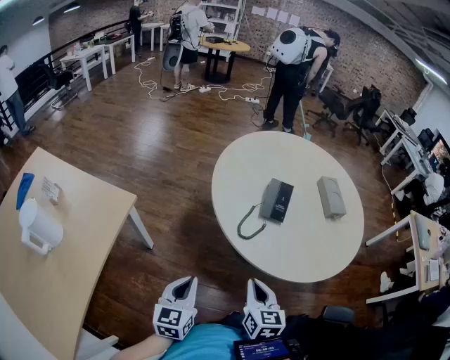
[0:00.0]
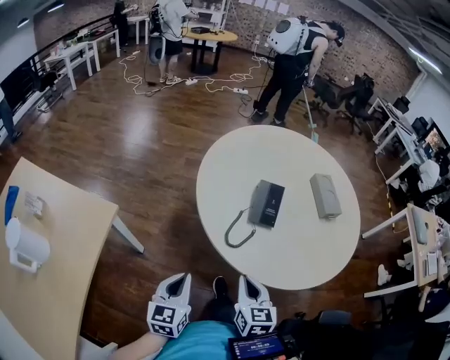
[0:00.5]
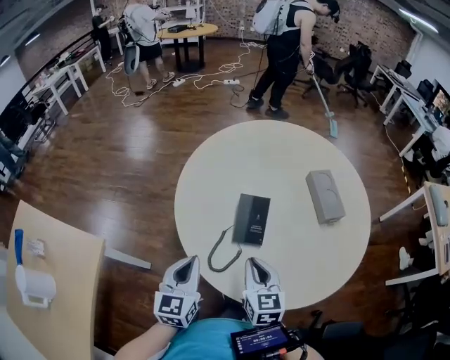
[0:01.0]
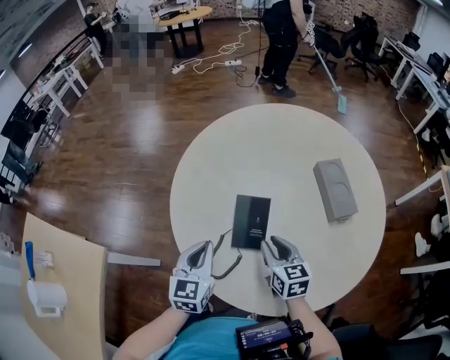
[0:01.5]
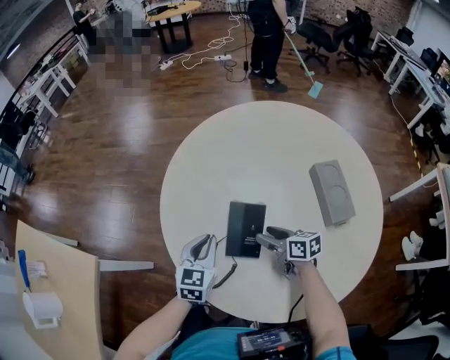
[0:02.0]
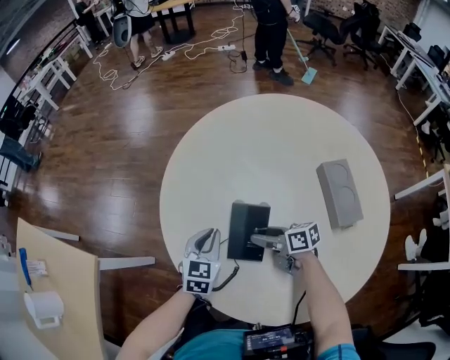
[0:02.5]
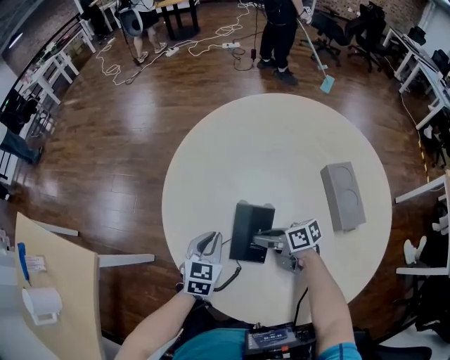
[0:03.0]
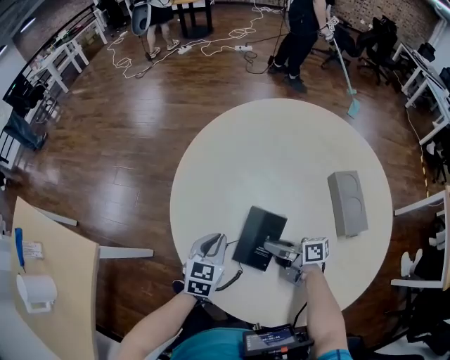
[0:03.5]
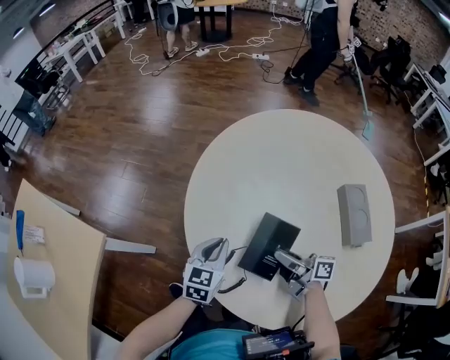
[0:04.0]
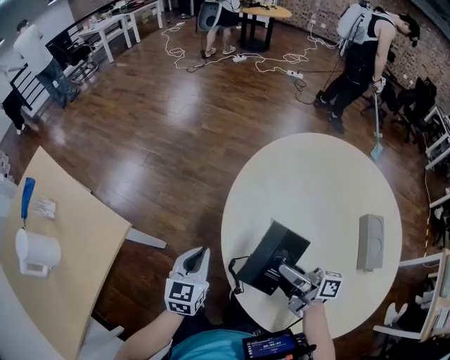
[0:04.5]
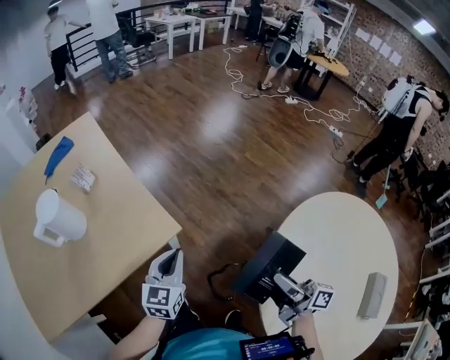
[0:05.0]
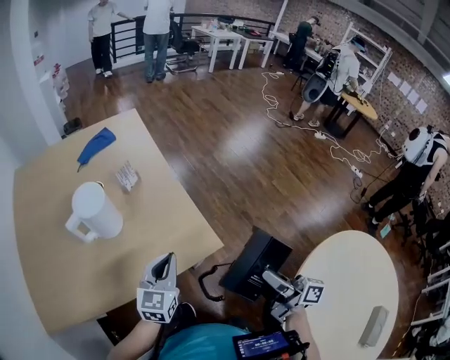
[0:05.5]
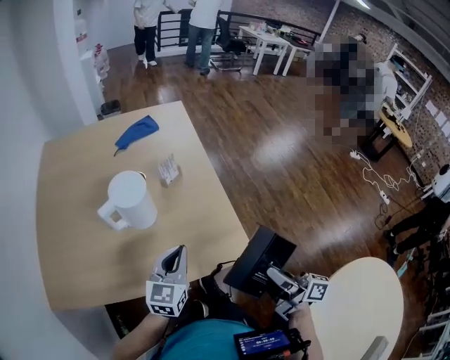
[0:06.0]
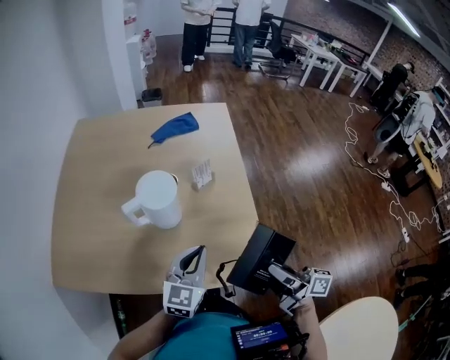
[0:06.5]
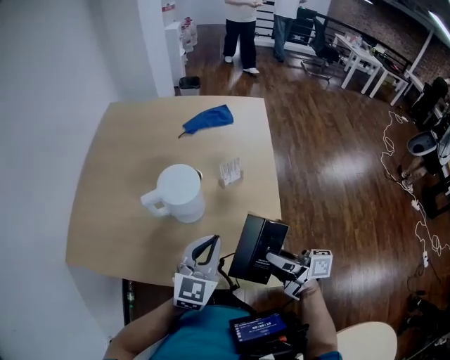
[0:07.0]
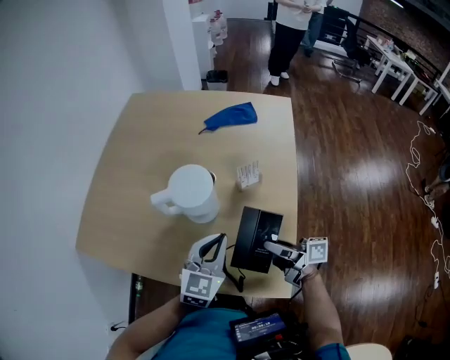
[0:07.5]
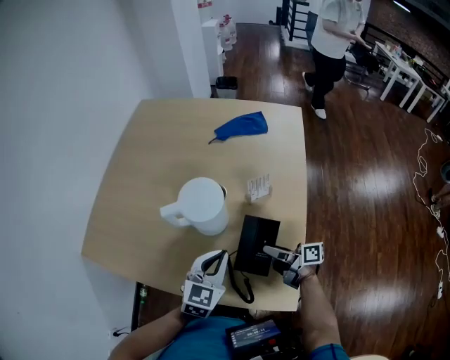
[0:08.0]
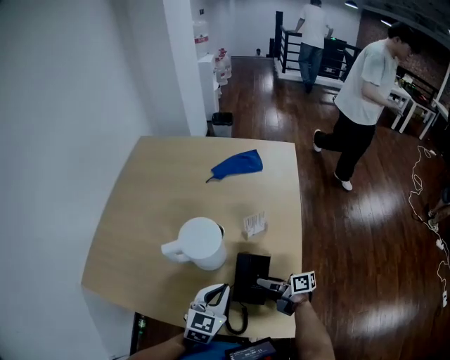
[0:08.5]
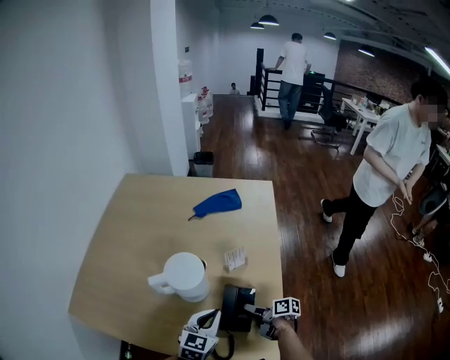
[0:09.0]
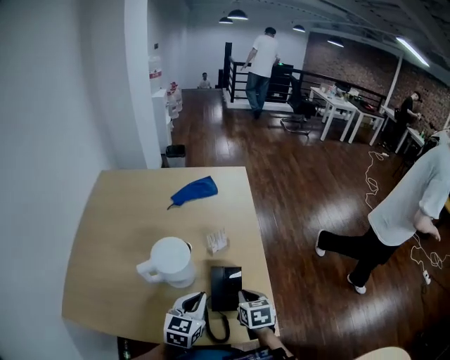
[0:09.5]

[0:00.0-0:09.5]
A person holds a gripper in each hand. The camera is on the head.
0:00.0 to 0:02.0: Both grippers are carried forward and to the right, some 40 cm. The right gripper rotates some 40 degrees, and opens its fingers.
0:02.0 to 0:04.0: The right gripper shifts by roughly 5 cm, changes its angle by some 30 degrees, and closes its fingers.
0:04.0 to 0:05.5: The pair of grippers is taken some 60 cm. The right gripper rotates roughly 40 degrees, while the left gripper swivels about 60 degrees.
0:05.5 to 0:07.5: The right gripper moves approximately 40 cm, and changes its angle by about 60 degrees; the left gripper changes place by approximately 15 cm, and rotates roughly 30 degrees.
0:07.5 to 0:09.5: The right gripper moves some 10 cm downward and comes back, angles its fingers downward, by about 50 degrees, and closes its fingers.

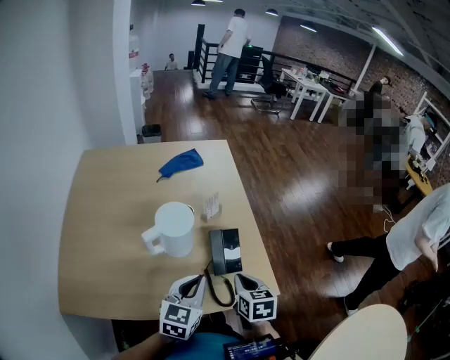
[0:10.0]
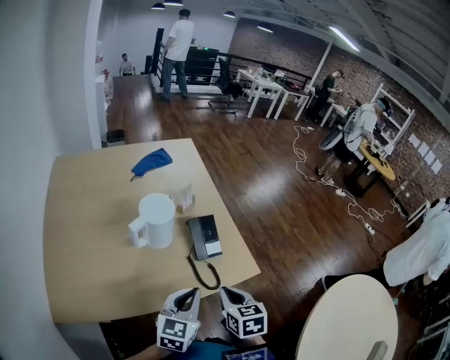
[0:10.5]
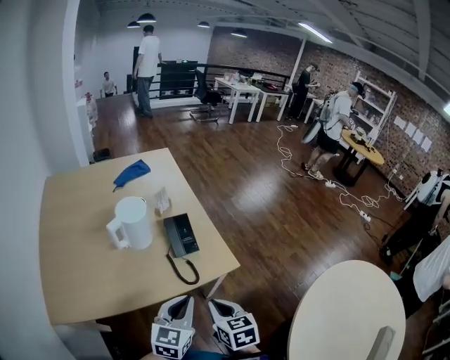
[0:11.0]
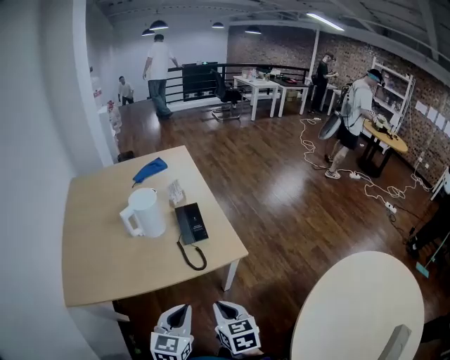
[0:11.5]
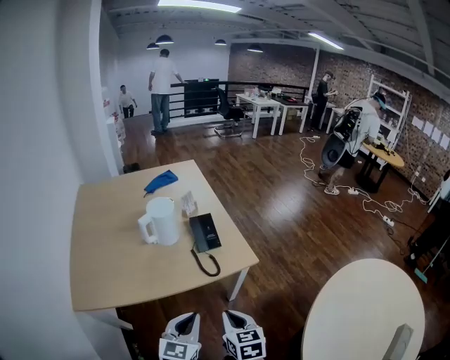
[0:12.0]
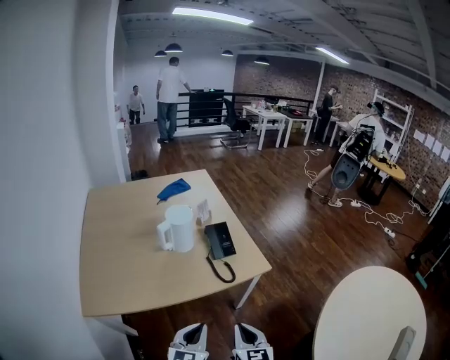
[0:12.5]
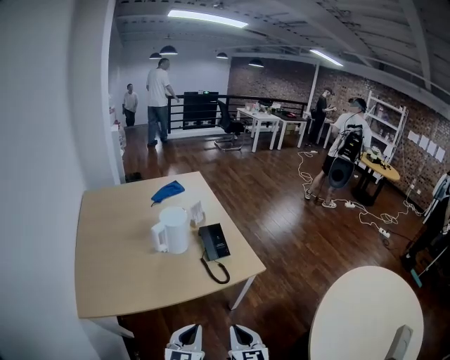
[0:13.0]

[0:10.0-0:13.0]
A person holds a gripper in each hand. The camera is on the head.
0:10.0 to 0:11.5: Both grippers move backward, some 25 cm.
0:11.5 to 0:13.0: The left gripper shifts about 10 cm to the left, while the right gripper goes approximately 10 cm backward and to the left.

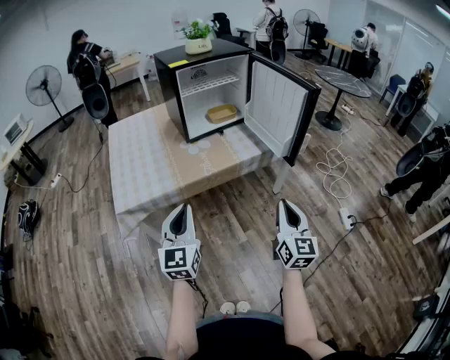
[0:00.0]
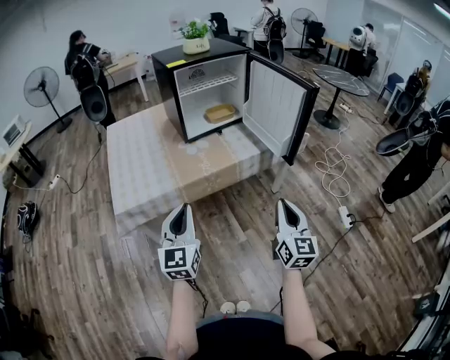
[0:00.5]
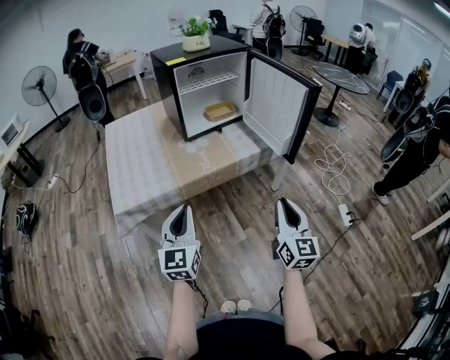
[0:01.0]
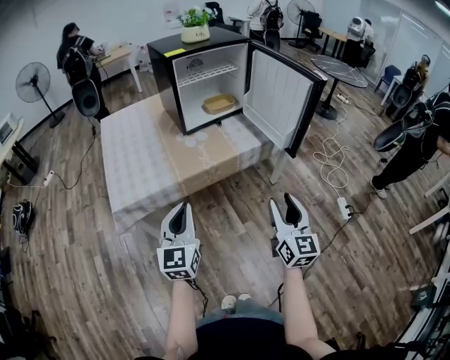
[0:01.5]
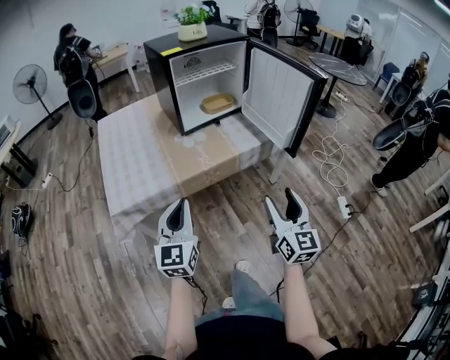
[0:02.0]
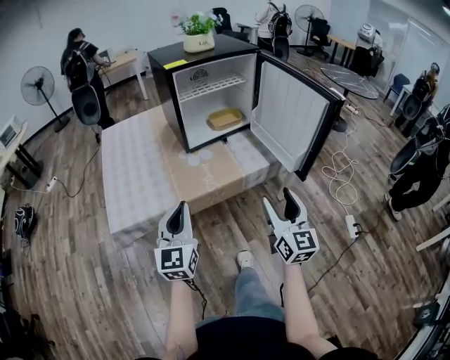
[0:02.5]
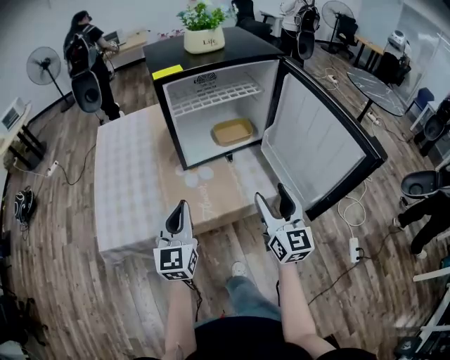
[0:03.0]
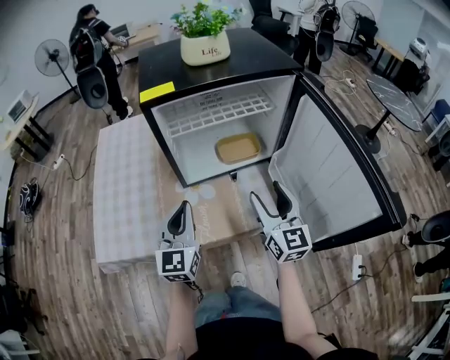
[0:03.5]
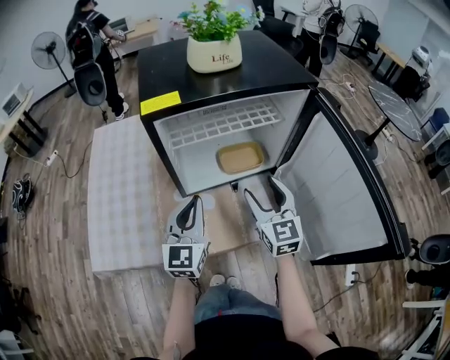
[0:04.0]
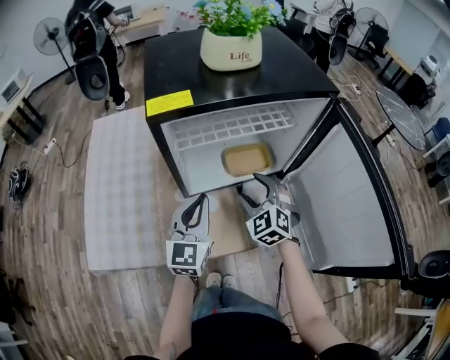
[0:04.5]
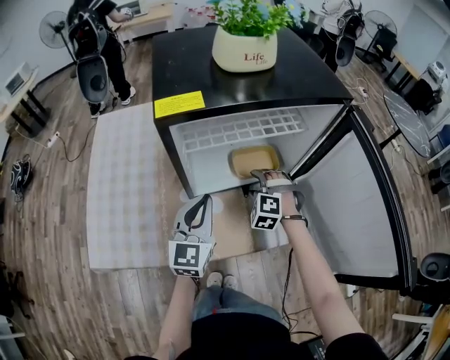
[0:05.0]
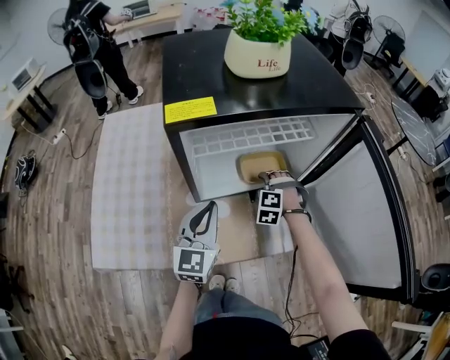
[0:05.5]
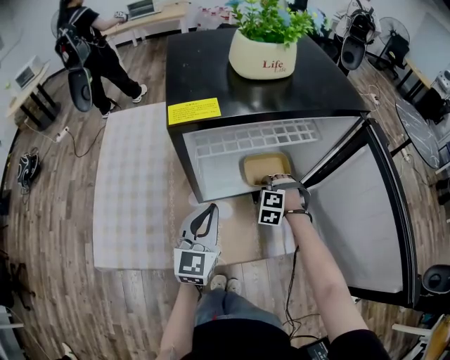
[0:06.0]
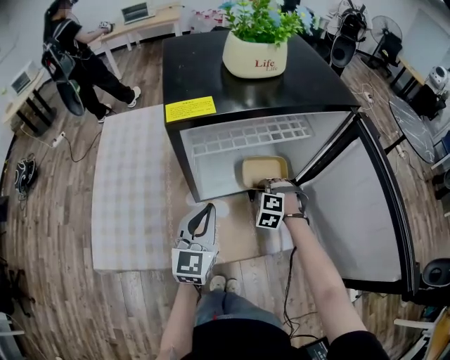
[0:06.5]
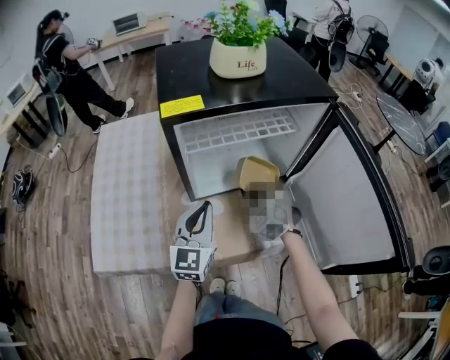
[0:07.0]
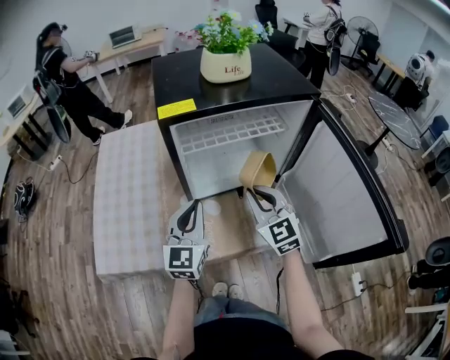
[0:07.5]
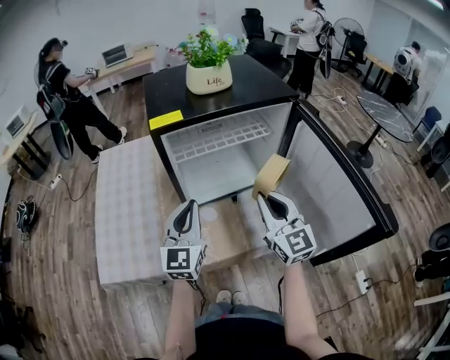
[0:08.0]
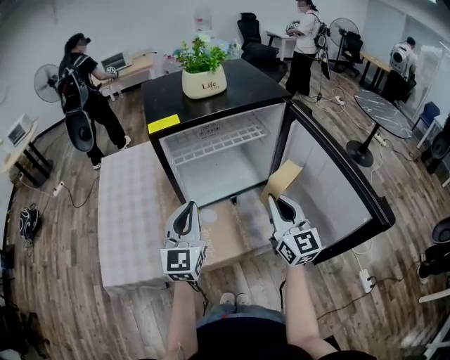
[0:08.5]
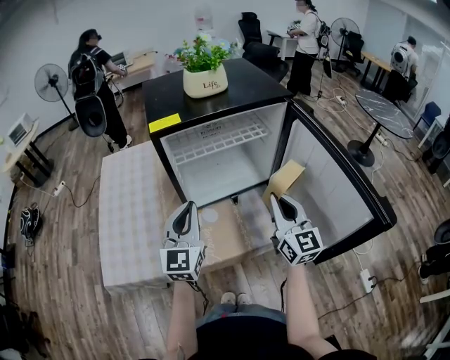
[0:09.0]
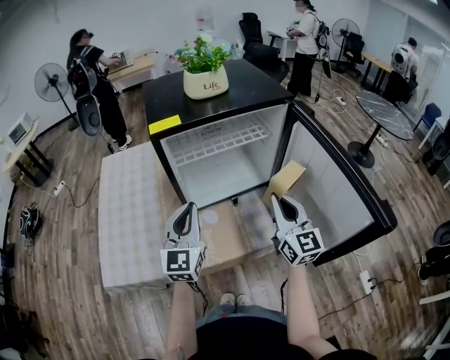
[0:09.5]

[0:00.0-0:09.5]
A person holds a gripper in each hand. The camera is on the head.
0:00.0 to 0:02.0: The right gripper opens its fingers.
0:02.0 to 0:04.0: Both grippers are carried forward, roughly 50 cm. The right gripper changes its angle by roughly 30 degrees.
0:04.0 to 0:05.5: The right gripper is displaced downward and forward by about 20 cm, and angles its fingers downward, by about 50 degrees; the left gripper ends up roughly 5 cm from where it was.
0:05.5 to 0:07.5: The left gripper shifts by about 5 cm. The right gripper is displaced upward and backward by about 25 cm, points its fingers roughly 50 degrees further upward, and closes up.
0:07.5 to 0:09.5: The right gripper is displaced to the right and backward by roughly 10 cm, and turns by roughly 30 degrees.

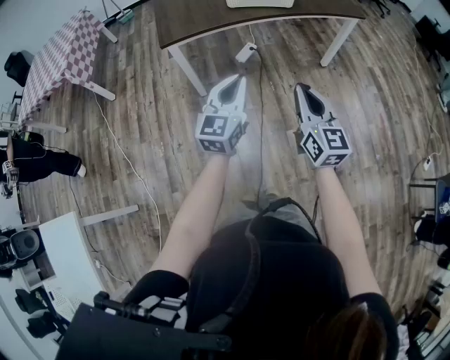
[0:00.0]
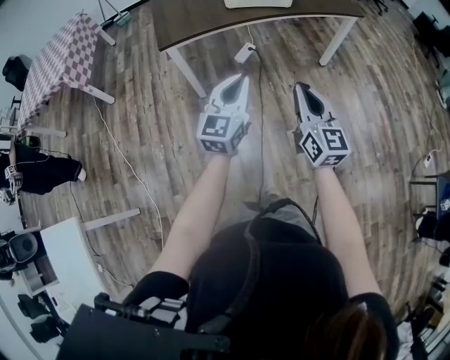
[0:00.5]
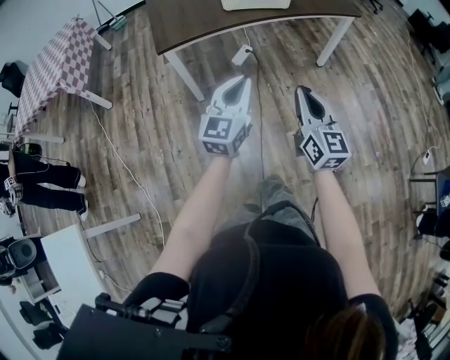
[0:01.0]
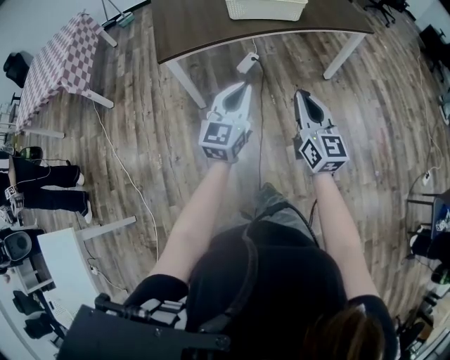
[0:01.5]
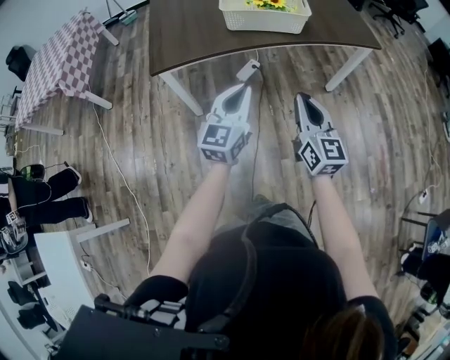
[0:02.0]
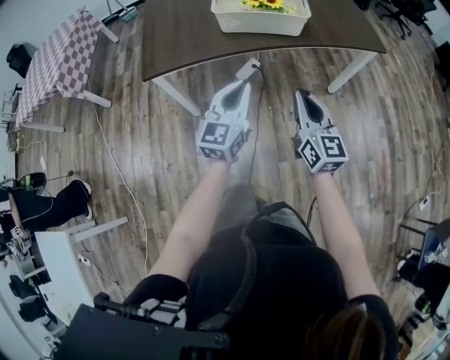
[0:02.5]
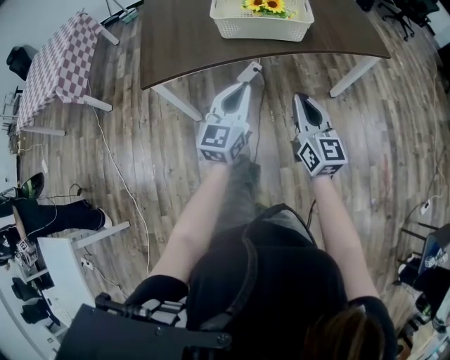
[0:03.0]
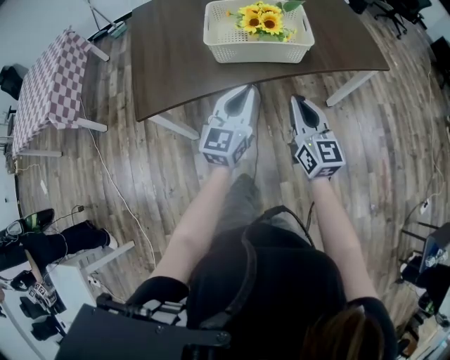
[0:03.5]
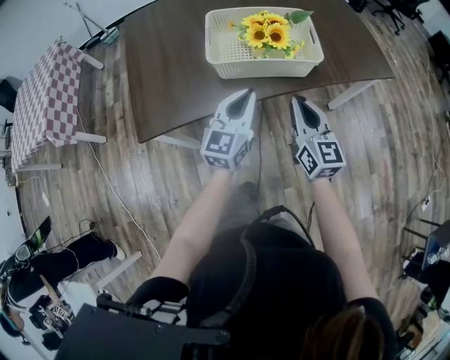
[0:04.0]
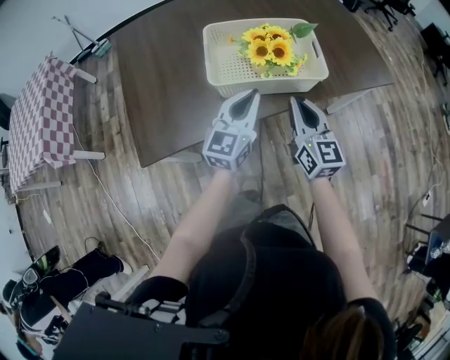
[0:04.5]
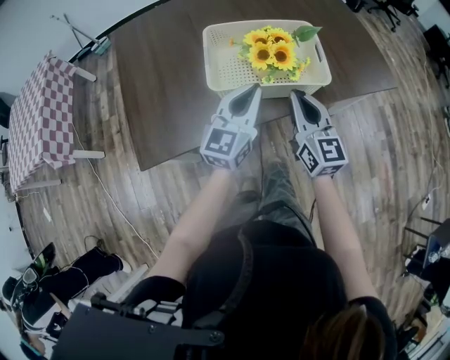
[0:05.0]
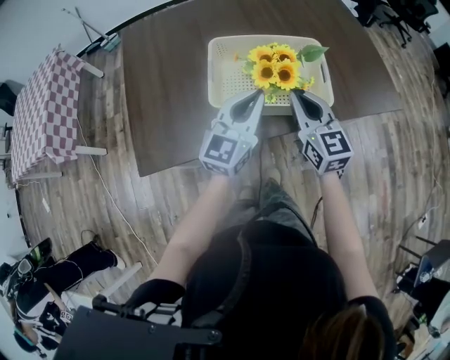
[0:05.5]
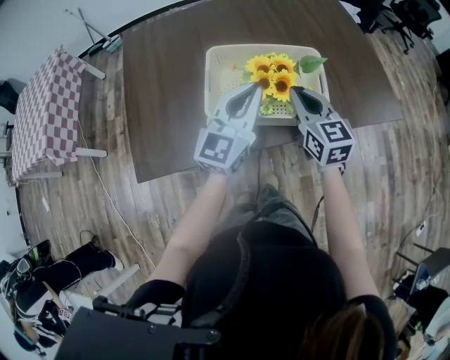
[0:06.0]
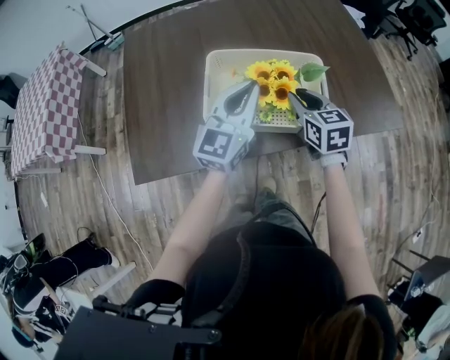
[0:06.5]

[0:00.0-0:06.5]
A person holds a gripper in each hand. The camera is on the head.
0:00.0 to 0:02.0: Both grippers travel together forward, some 20 cm.
0:02.0 to 0:04.5: The grippers both shift forward by approximately 30 cm.
0:04.5 to 0:06.5: The left gripper shifts about 15 cm forward and upward. Meanwhile the right gripper moves forward, about 15 cm, changes its angle by approximately 30 degrees, and opens.
